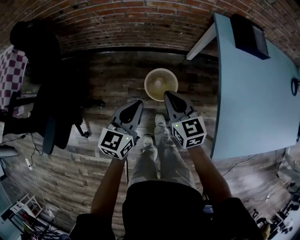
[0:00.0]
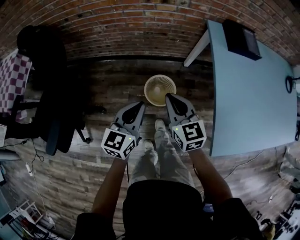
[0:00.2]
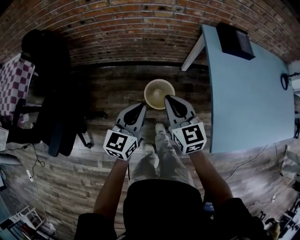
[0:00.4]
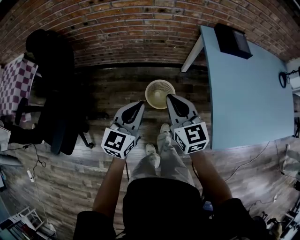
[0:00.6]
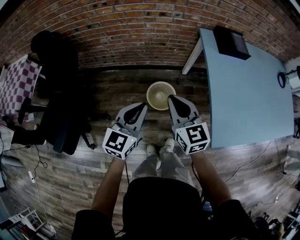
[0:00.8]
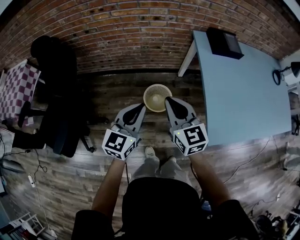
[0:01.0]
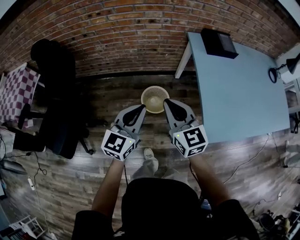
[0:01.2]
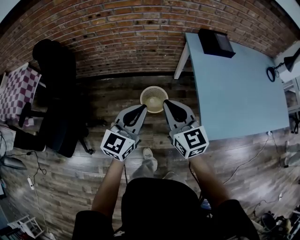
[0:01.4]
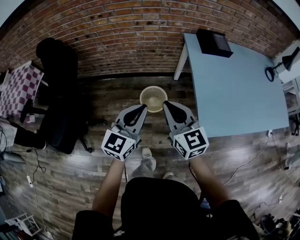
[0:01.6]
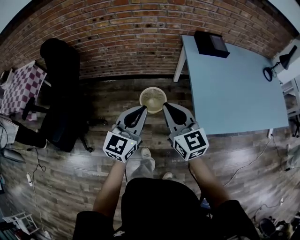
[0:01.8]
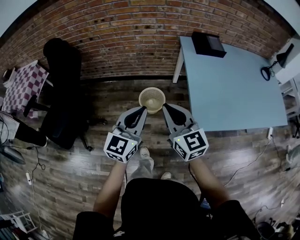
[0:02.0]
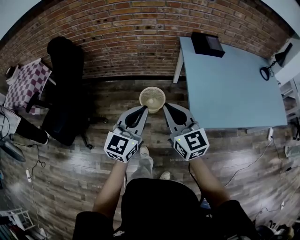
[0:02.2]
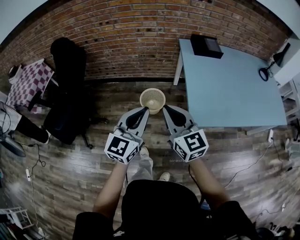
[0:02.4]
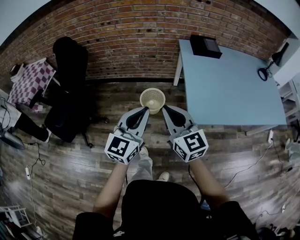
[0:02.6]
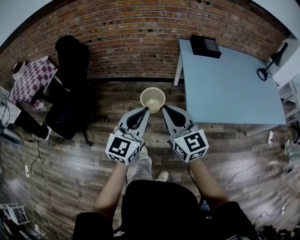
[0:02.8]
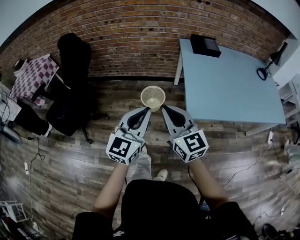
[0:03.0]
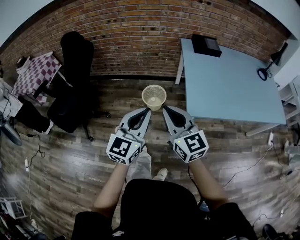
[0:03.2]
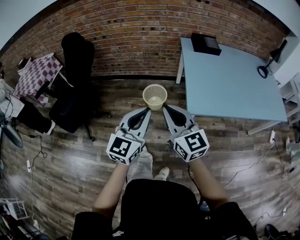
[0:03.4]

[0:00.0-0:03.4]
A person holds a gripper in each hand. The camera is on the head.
0:00.0 to 0:01.6: The grippers both shift upward and backward by approximately 25 cm. The left gripper changes its angle by approximately 20 degrees.
0:01.6 to 0:03.4: Both grippers move backward, some 25 cm.

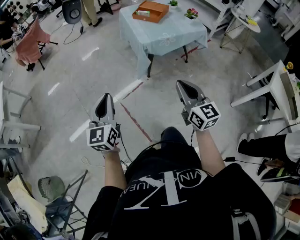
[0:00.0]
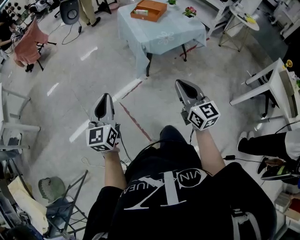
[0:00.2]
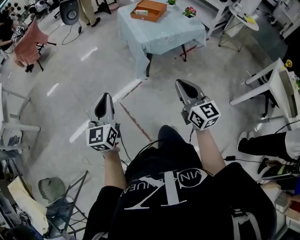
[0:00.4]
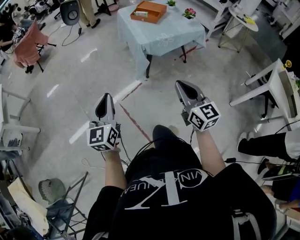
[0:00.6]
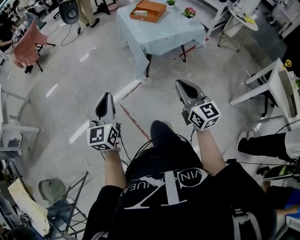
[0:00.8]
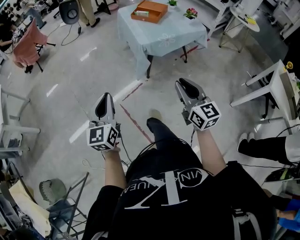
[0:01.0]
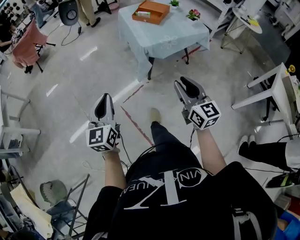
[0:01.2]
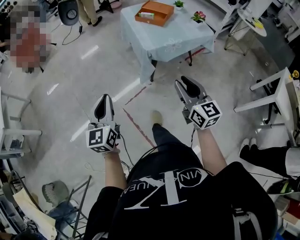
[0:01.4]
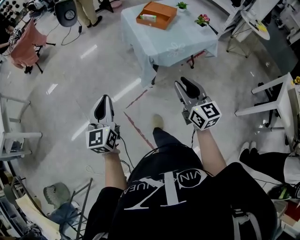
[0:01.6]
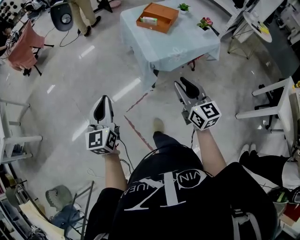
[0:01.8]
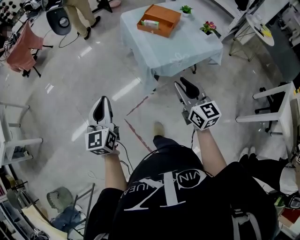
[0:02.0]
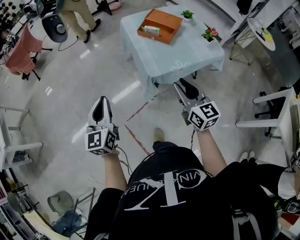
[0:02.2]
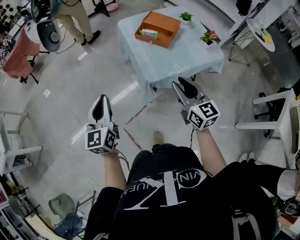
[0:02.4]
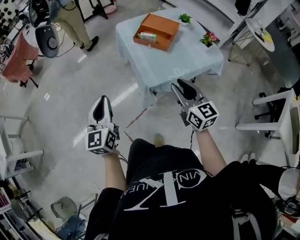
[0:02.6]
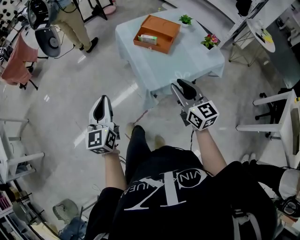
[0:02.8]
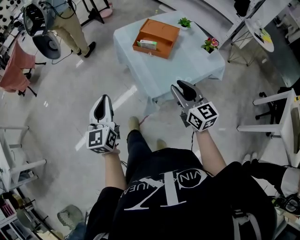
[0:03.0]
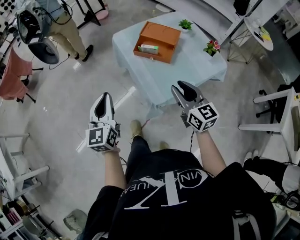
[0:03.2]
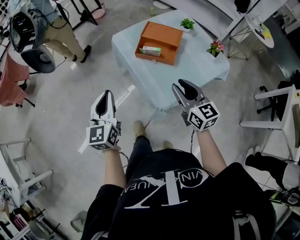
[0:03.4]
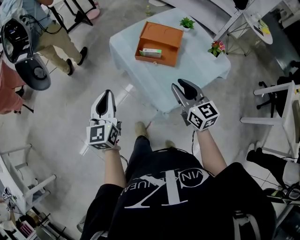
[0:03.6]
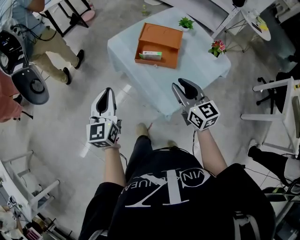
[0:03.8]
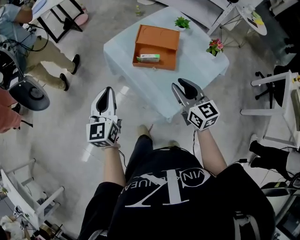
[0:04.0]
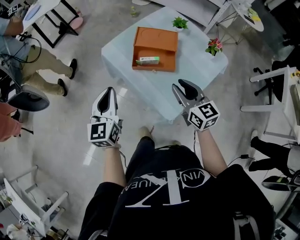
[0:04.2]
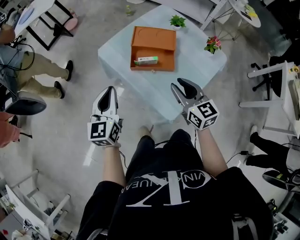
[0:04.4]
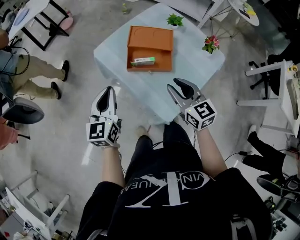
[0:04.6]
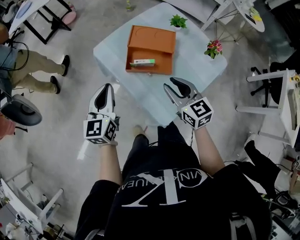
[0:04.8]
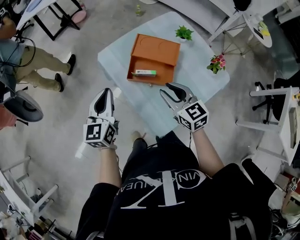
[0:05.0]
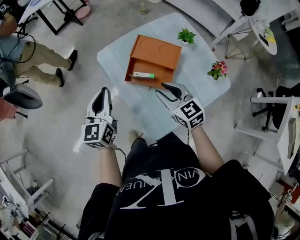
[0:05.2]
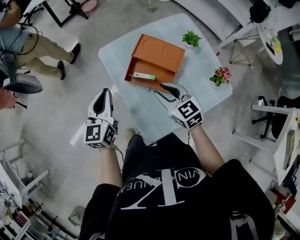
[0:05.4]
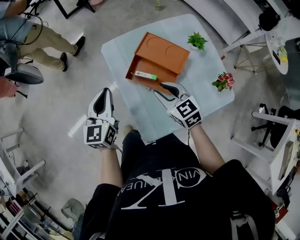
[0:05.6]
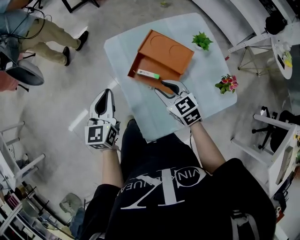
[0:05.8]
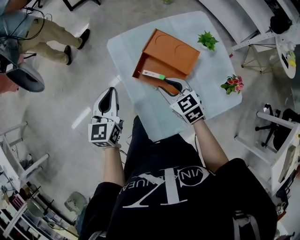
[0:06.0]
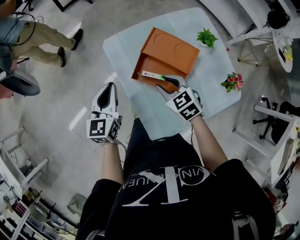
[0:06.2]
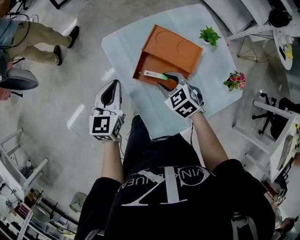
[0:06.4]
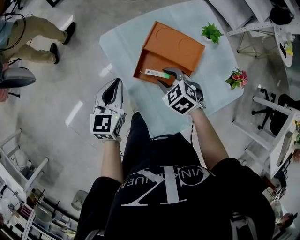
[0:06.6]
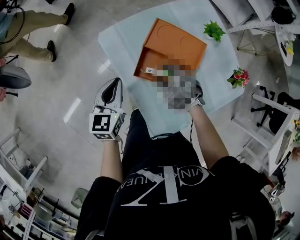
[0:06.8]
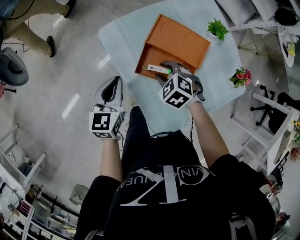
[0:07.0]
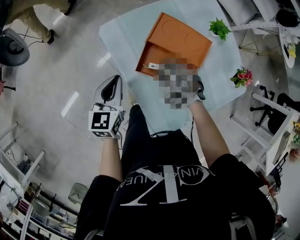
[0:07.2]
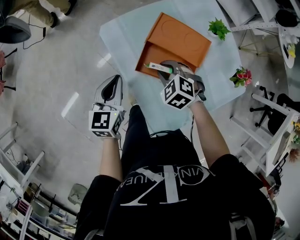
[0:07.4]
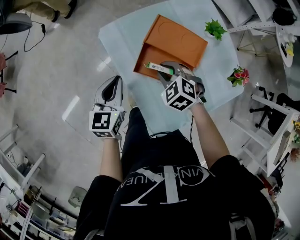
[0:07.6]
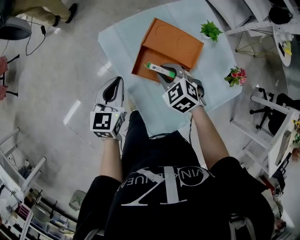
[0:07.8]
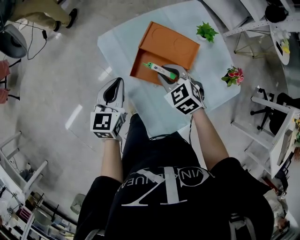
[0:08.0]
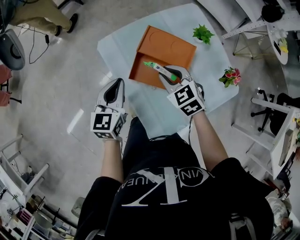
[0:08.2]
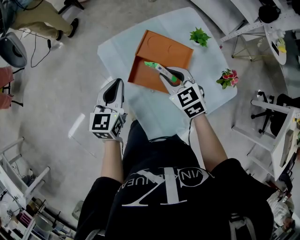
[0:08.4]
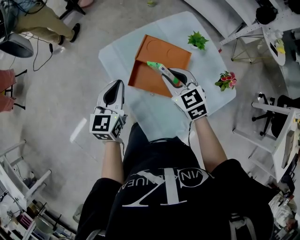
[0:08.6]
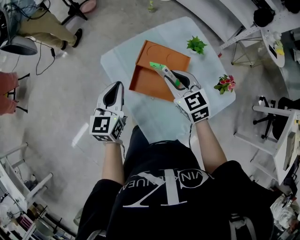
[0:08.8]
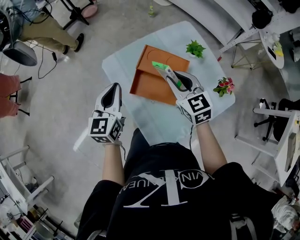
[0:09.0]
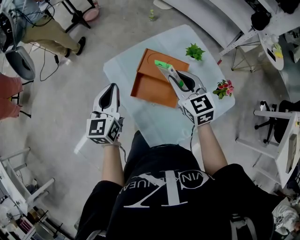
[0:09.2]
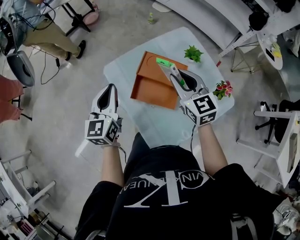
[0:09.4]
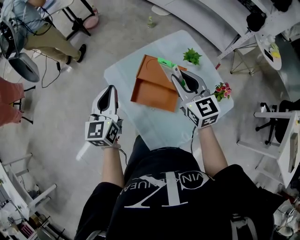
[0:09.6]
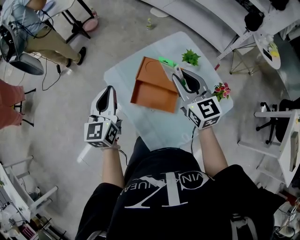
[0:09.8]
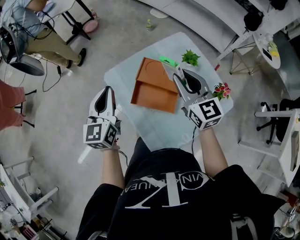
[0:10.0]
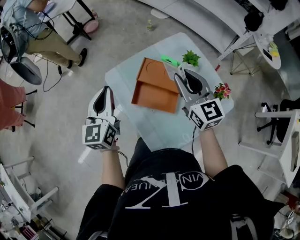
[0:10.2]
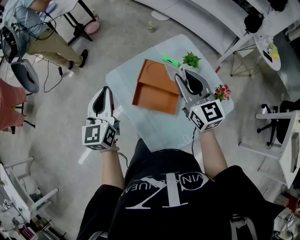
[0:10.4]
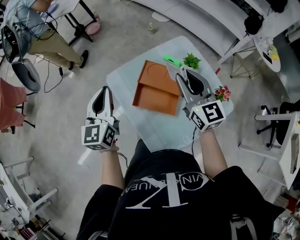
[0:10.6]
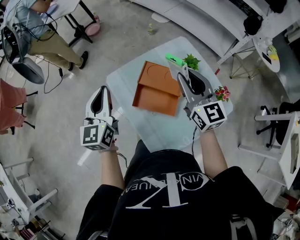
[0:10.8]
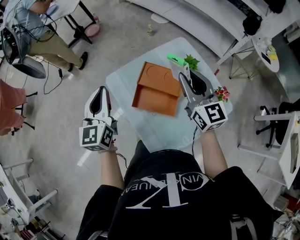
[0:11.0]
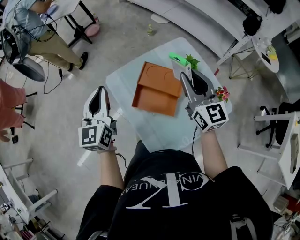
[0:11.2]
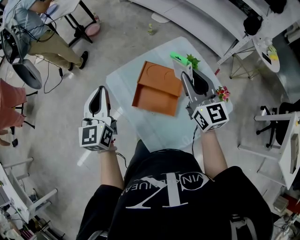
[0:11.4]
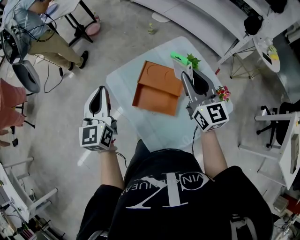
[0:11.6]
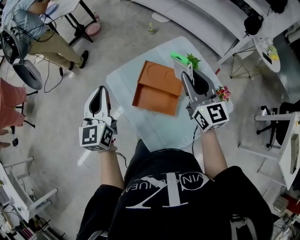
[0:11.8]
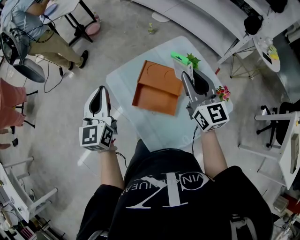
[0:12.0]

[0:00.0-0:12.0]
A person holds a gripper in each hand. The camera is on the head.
0:00.0 to 0:01.6: The two grippers go some 20 cm forward. The right gripper opens its fingers.
0:01.6 to 0:03.0: The two grippers go roughly 35 cm forward.
0:03.0 to 0:04.4: Both grippers move forward, about 25 cm. The left gripper swivels approximately 20 degrees.
0:04.4 to 0:06.0: The left gripper changes place by about 10 cm, and changes its angle by about 20 degrees. Meanwhile the right gripper moves some 20 cm, and changes its angle by approximately 40 degrees.
0:06.0 to 0:07.6: Both grippers travel together downward and forward, about 10 cm. The right gripper rotates about 30 degrees.
0:07.6 to 0:09.0: The left gripper shifts roughly 10 cm upward. The right gripper shifts about 20 cm upward and to the right, and tips its fingers upward by some 30 degrees.
0:09.0 to 0:10.4: Both grippers move upward, approximately 10 cm. The right gripper swivels some 20 degrees.
0:10.4 to 0:12.0: The grippers move only a little.

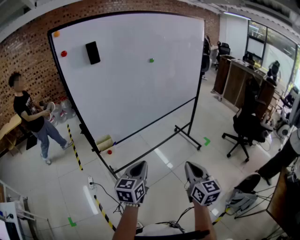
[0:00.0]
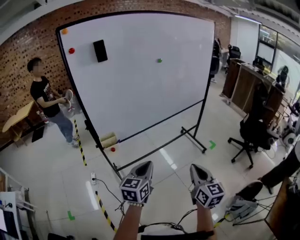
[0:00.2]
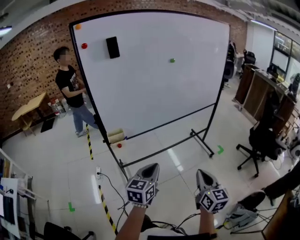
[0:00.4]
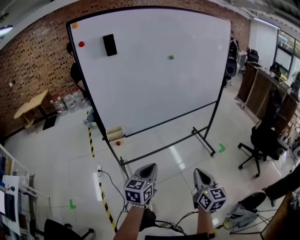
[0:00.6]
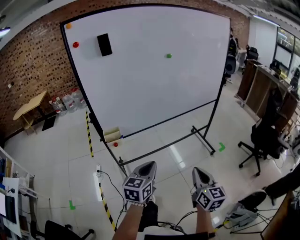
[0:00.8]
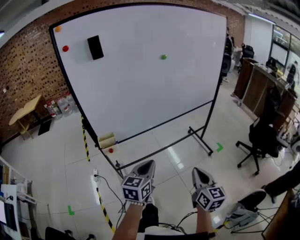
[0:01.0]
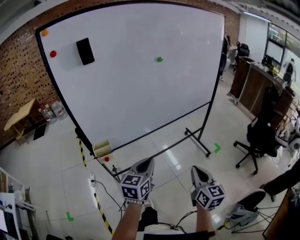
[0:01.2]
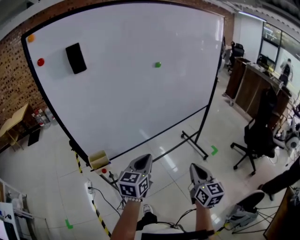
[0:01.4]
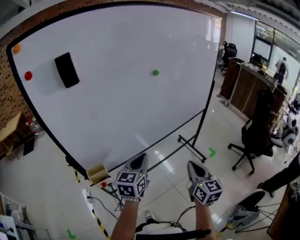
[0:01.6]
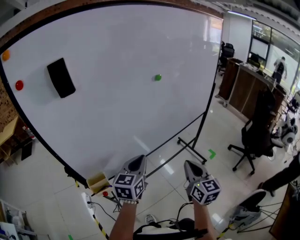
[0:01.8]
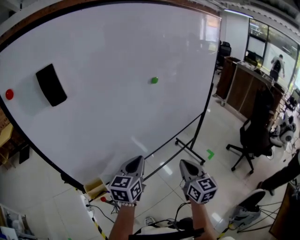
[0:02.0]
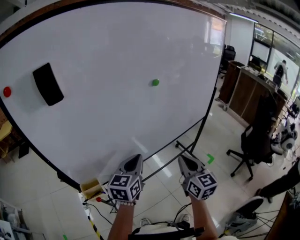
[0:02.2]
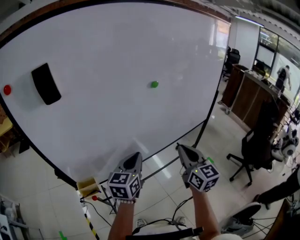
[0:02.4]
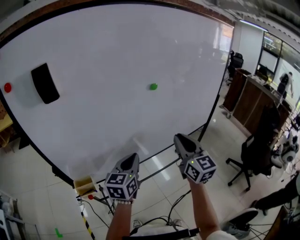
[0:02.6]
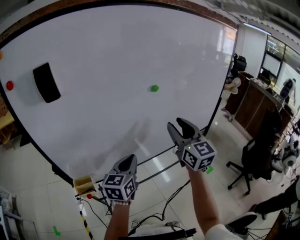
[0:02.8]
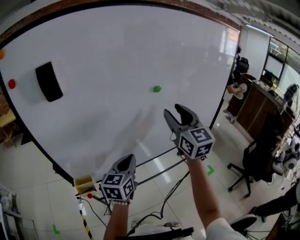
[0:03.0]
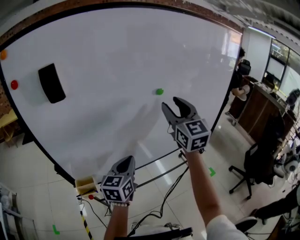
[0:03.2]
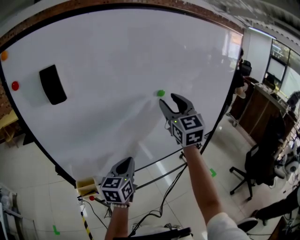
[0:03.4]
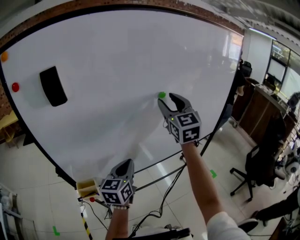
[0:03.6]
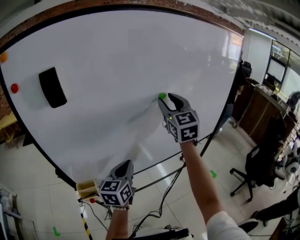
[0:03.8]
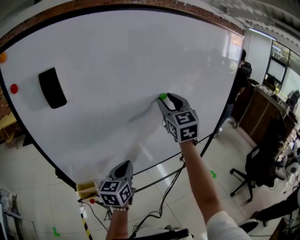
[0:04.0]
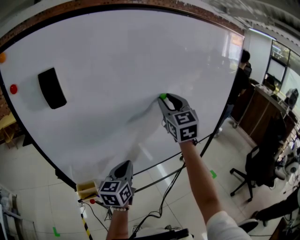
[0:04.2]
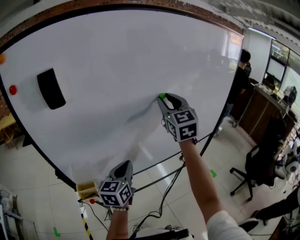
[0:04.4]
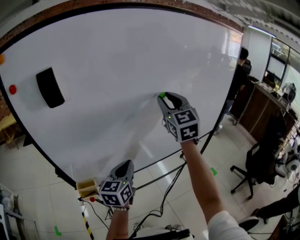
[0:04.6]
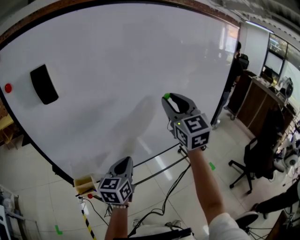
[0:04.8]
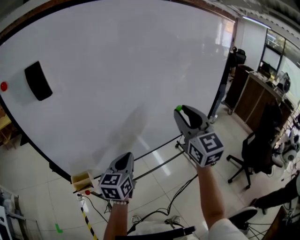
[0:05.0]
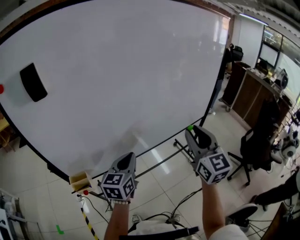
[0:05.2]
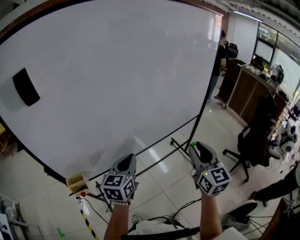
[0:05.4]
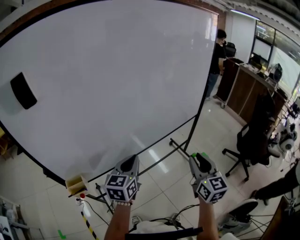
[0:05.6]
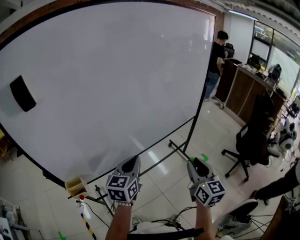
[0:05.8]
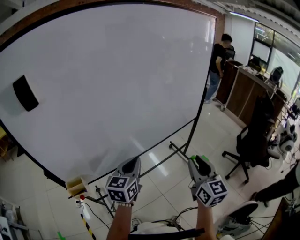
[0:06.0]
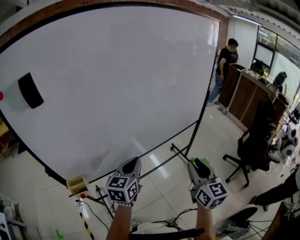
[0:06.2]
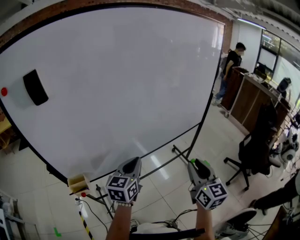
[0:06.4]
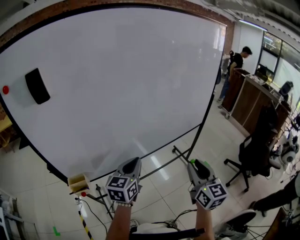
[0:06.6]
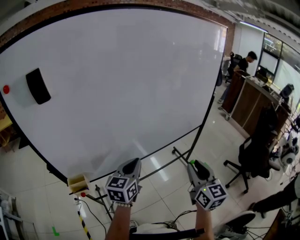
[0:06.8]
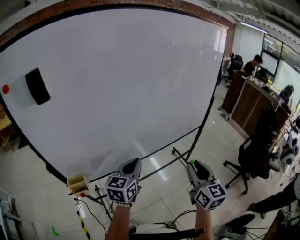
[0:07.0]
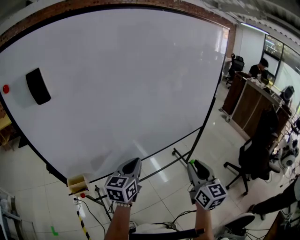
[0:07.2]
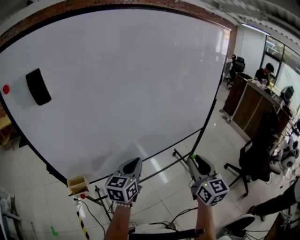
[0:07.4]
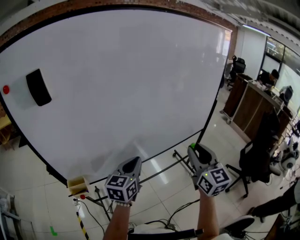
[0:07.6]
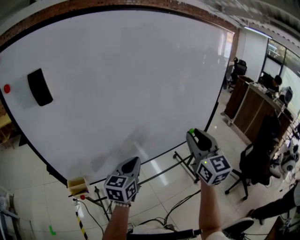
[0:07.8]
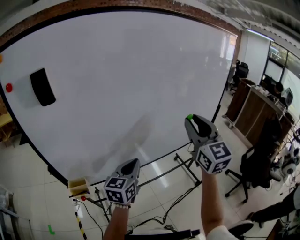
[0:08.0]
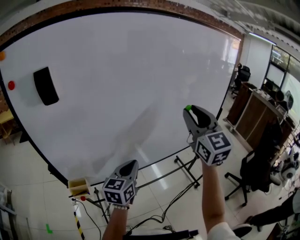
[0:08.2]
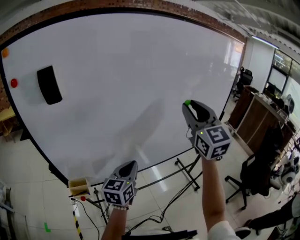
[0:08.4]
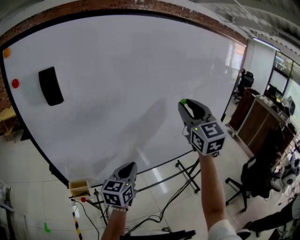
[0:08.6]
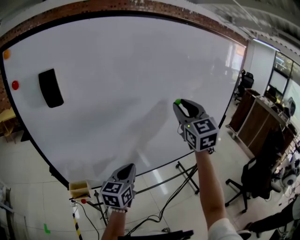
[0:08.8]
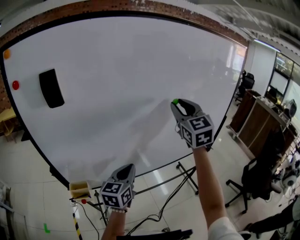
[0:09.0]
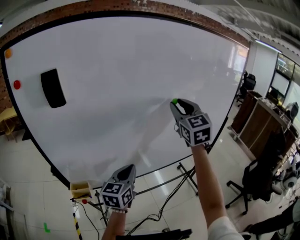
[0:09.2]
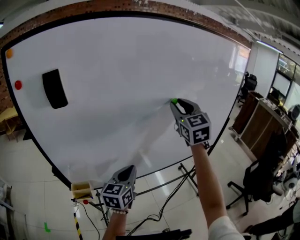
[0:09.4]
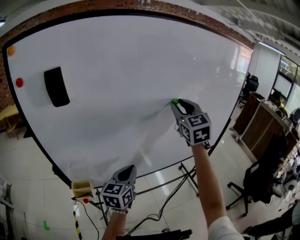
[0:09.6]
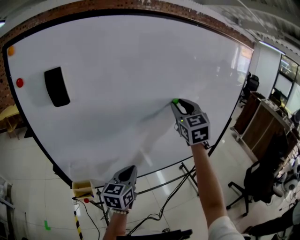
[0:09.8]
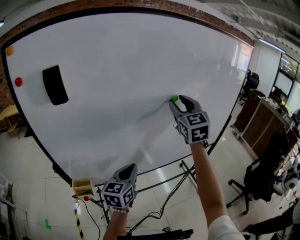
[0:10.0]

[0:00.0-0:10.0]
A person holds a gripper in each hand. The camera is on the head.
0:00.0 to 0:01.4: Both grippers move forward, roughly 20 cm.
0:01.4 to 0:02.8: The left gripper shifts approximately 20 cm forward, while the right gripper is displaced forward and upward by about 35 cm, turns by approximately 20 degrees, and opens its fingers.
0:02.8 to 0:04.2: The right gripper travels forward, upward and to the left by some 15 cm.
0:04.2 to 0:05.8: The right gripper travels backward, to the right and downward by some 40 cm, and changes its angle by some 30 degrees; the left gripper heads to the right, covering about 15 cm.
0:05.8 to 0:07.2: There are only small adjustments of the grippers.
0:07.2 to 0:08.6: The right gripper travels upward, forward and to the left by roughly 30 cm, and swivels roughly 30 degrees, while the left gripper travels to the left by roughly 5 cm.
0:08.6 to 0:10.0: The right gripper is displaced forward by some 5 cm.
